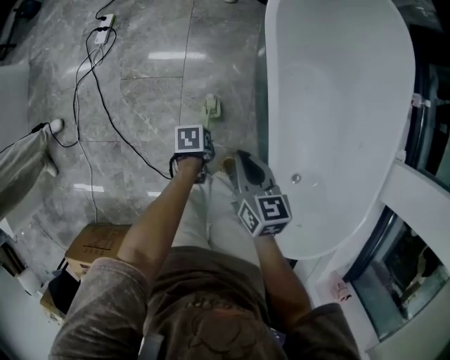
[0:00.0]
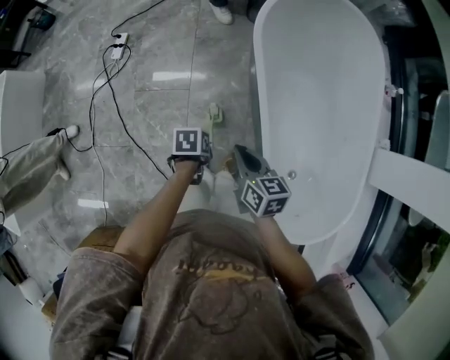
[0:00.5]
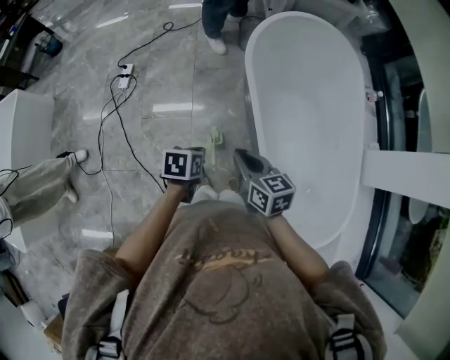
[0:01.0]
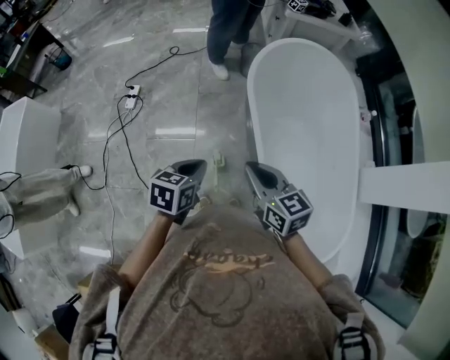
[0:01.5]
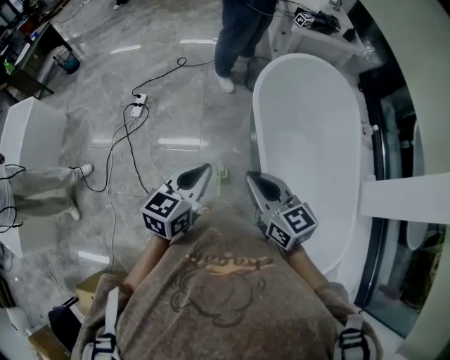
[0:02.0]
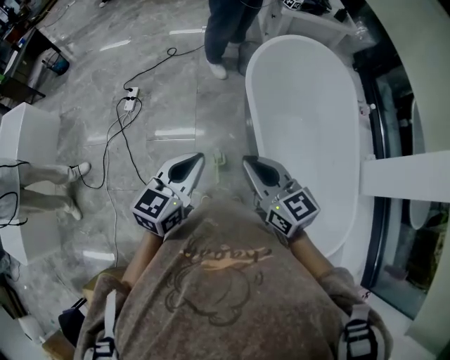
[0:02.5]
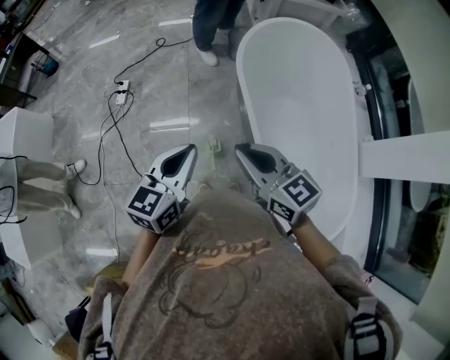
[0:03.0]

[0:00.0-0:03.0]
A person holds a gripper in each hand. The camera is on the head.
0:00.0 to 0:01.5: Both grippers travel together upward, about 35 cm. The right gripper rotates about 20 degrees, while the left gripper rotates approximately 50 degrees.
0:01.5 to 0:03.0: The left gripper is displaced upward by some 10 cm, and rotates approximately 30 degrees, while the right gripper shifts some 5 cm upward.

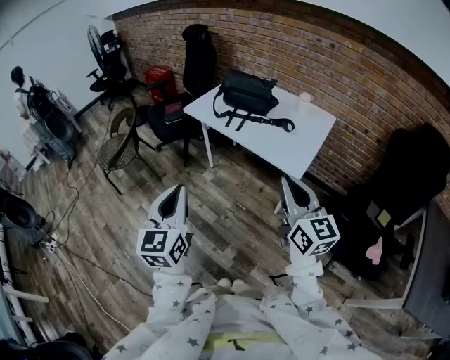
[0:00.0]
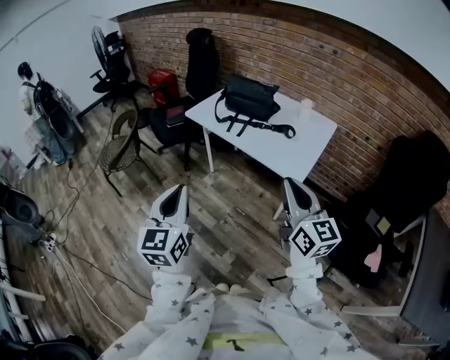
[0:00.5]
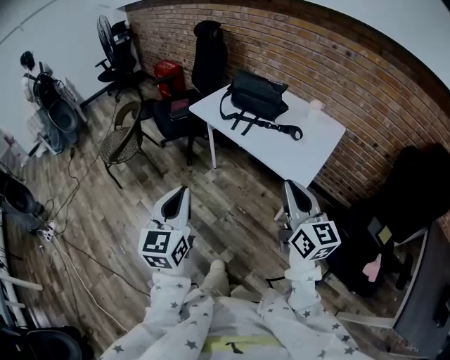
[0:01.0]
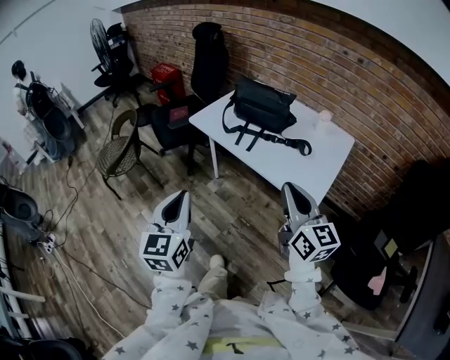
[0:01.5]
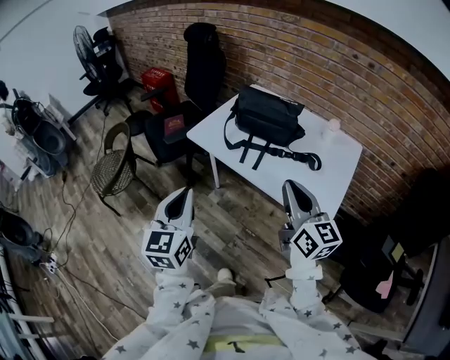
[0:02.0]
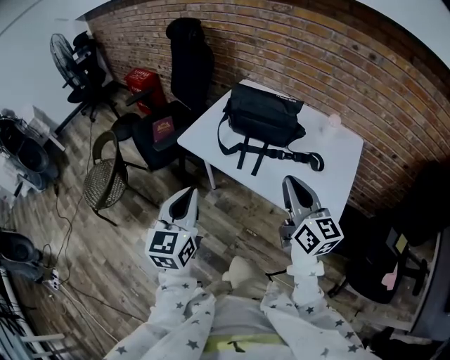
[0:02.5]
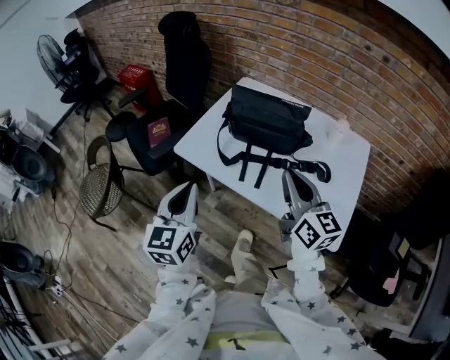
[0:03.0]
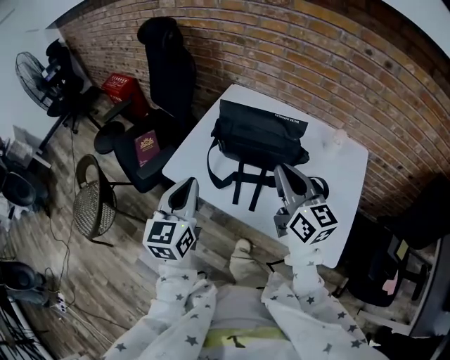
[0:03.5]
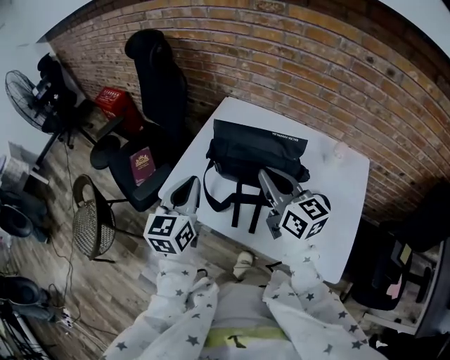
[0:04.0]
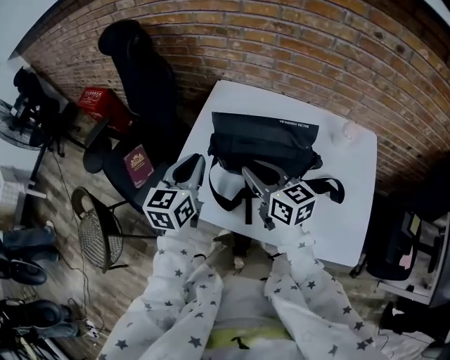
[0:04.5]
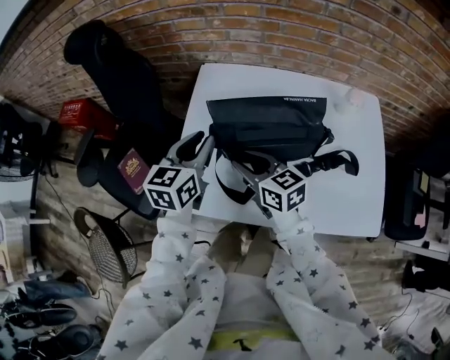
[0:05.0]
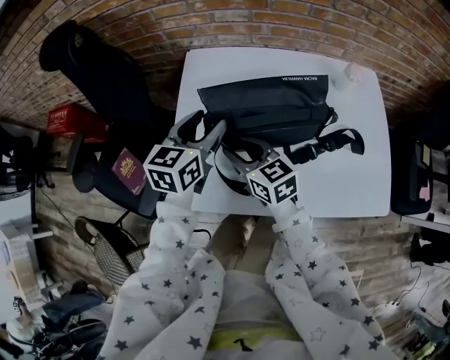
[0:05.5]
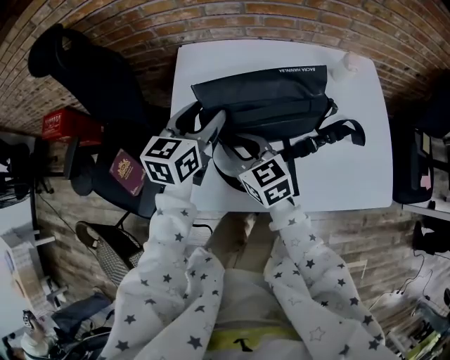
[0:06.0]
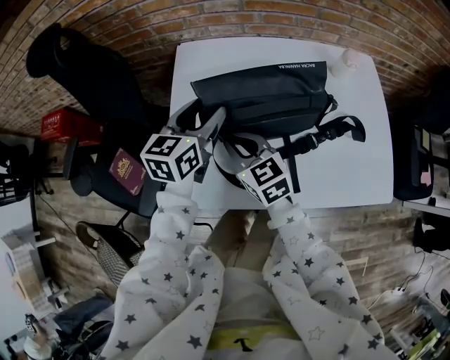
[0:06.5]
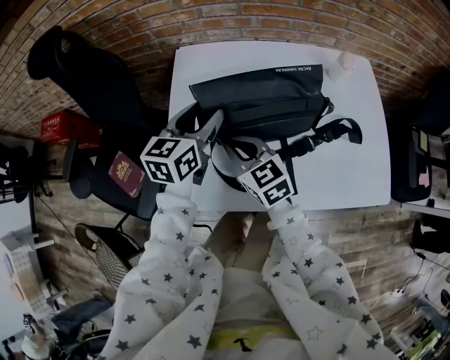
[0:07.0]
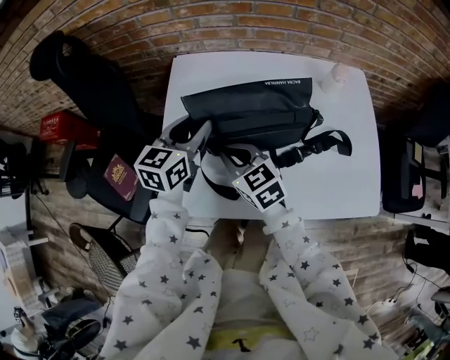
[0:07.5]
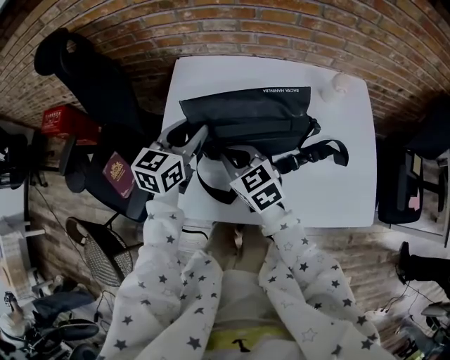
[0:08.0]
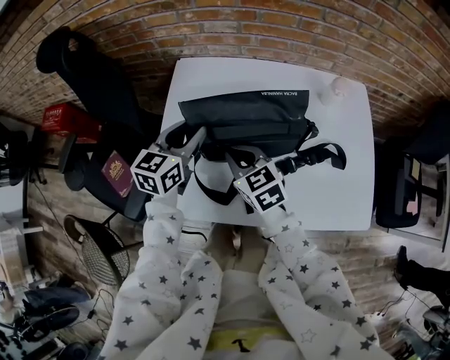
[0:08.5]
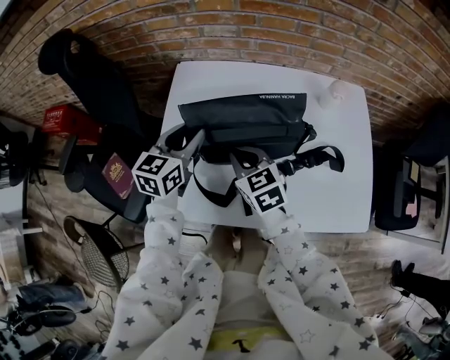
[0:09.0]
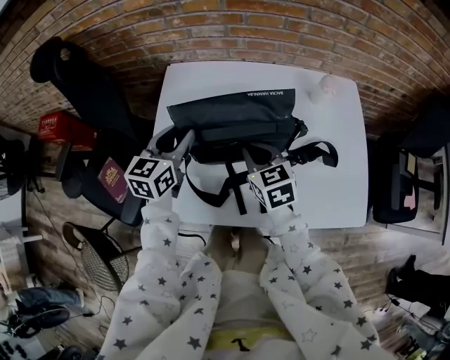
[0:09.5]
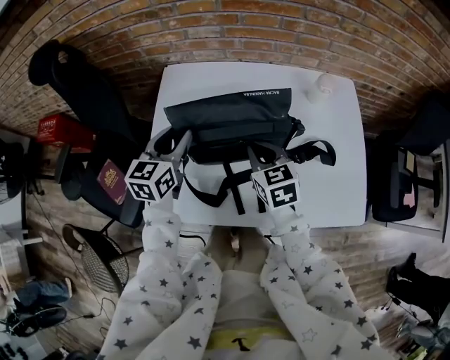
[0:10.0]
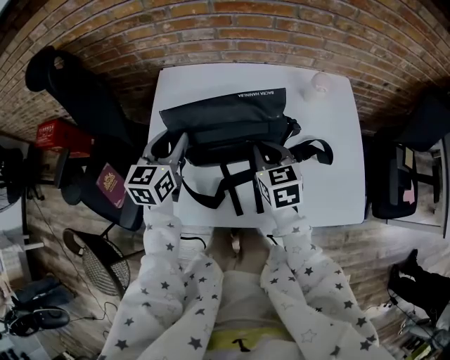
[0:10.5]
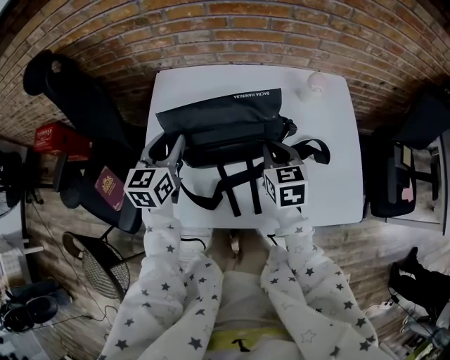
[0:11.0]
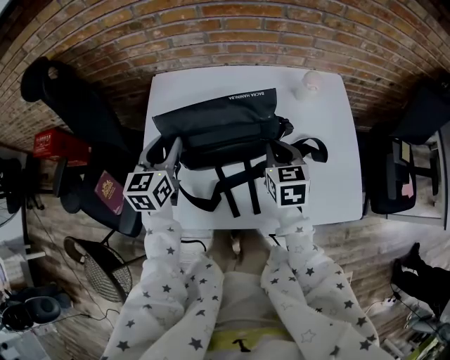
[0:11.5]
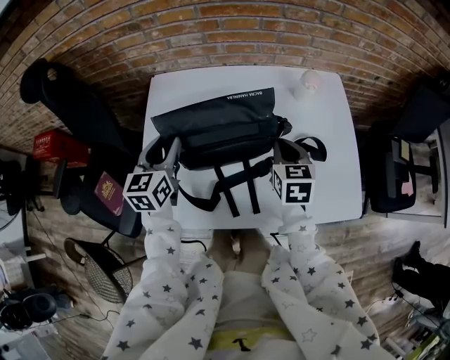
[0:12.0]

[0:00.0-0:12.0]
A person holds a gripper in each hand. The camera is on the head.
0:00.0 to 0:02.0: Both grippers move forward, about 25 cm.
0:02.0 to 0:04.0: The two grippers go approximately 35 cm forward.
0:04.0 to 0:06.0: The right gripper goes about 15 cm downward, turns by roughly 30 degrees, and opens its fingers. Meanwhile the left gripper changes place by roughly 20 cm, changes its angle by roughly 40 degrees, and opens up.
0:06.0 to 0:08.0: The left gripper closes its fingers.
0:08.0 to 0:10.0: The right gripper goes roughly 10 cm to the right.
0:10.0 to 0:12.0: The right gripper goes approximately 10 cm to the right, and changes its angle by approximately 20 degrees.

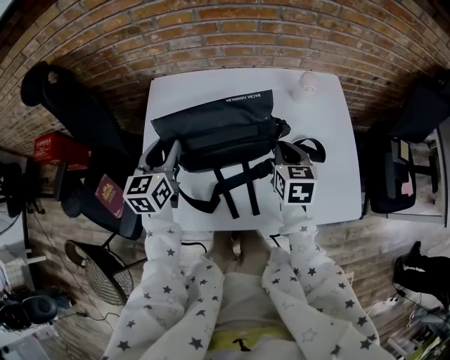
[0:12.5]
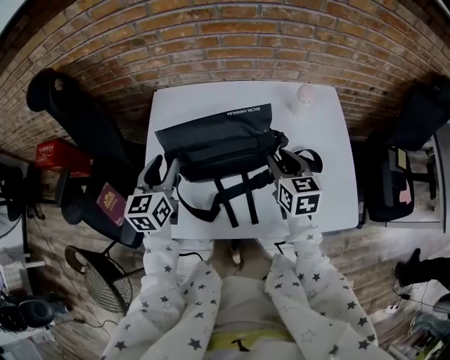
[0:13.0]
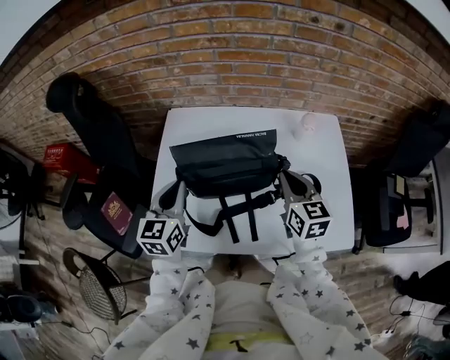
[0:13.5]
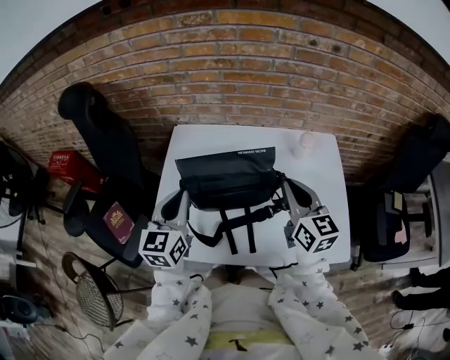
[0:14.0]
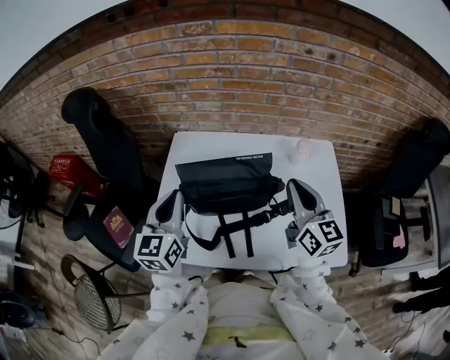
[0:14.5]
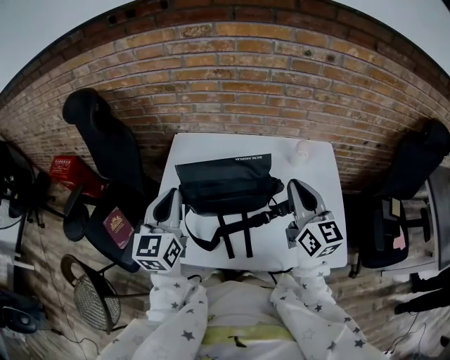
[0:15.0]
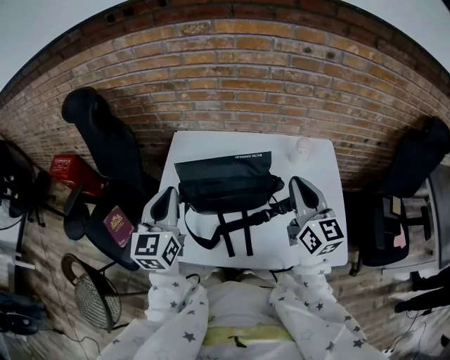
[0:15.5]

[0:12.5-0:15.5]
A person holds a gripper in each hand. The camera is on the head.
0:12.5 to 0:14.0: The left gripper is displaced upward and backward by roughly 10 cm, and closes its fingers, while the right gripper heads upward, covering some 15 cm, rotates approximately 30 degrees, and opens, then closes again.
0:14.0 to 0:15.5: The grippers stay close to where they were, moving slightly.

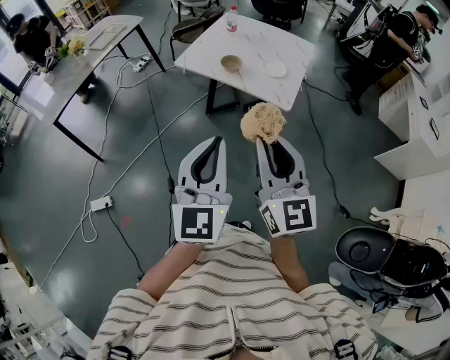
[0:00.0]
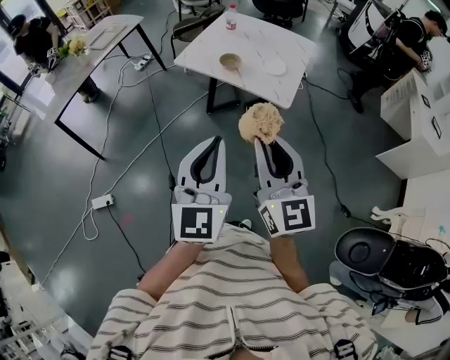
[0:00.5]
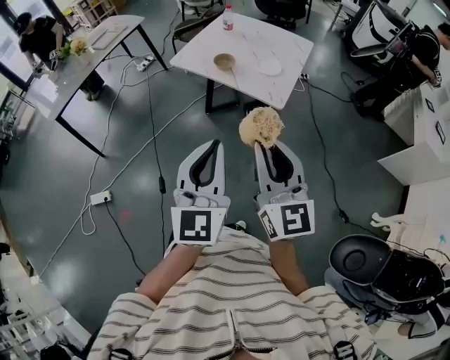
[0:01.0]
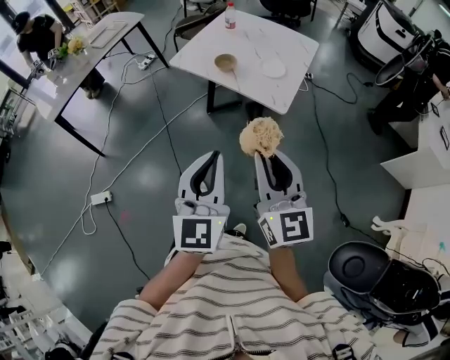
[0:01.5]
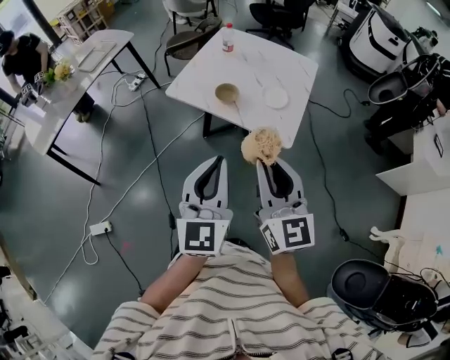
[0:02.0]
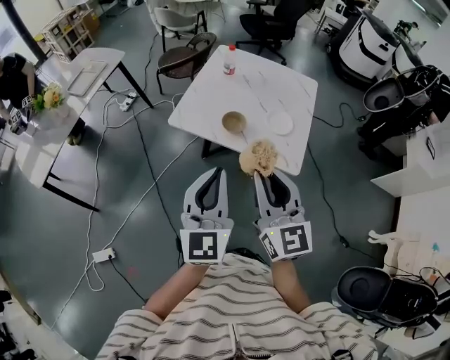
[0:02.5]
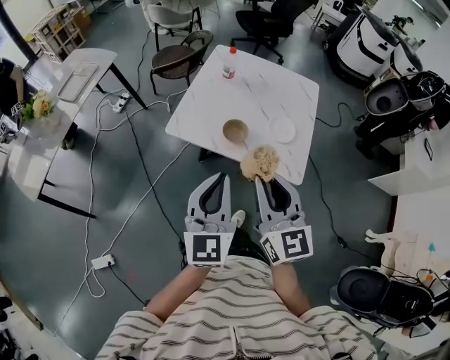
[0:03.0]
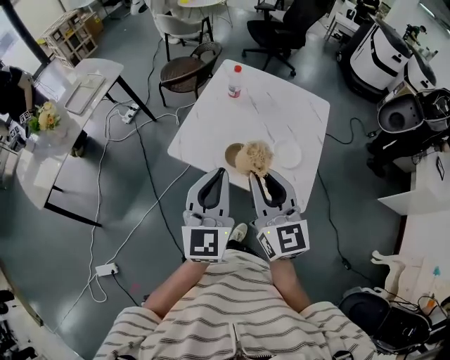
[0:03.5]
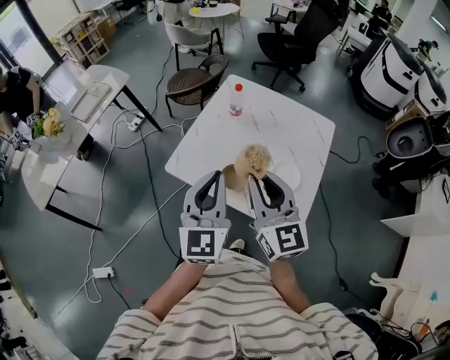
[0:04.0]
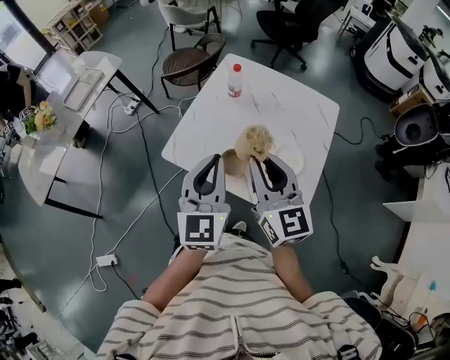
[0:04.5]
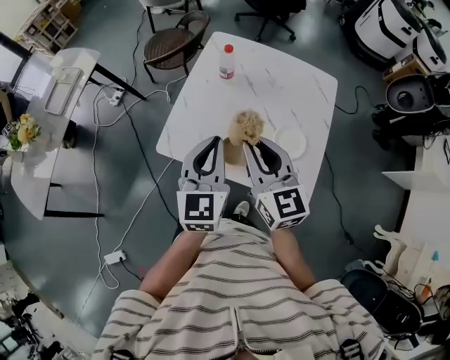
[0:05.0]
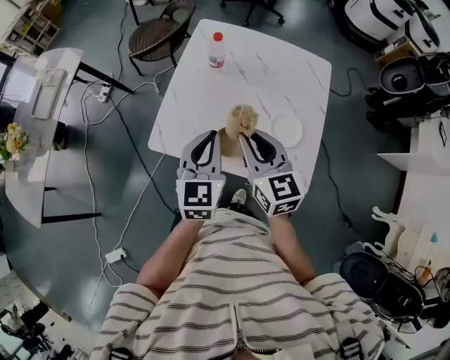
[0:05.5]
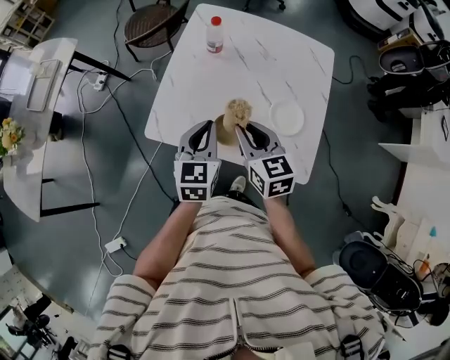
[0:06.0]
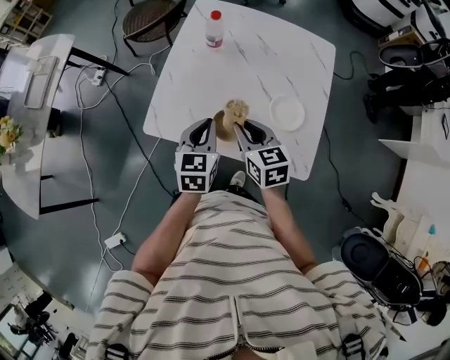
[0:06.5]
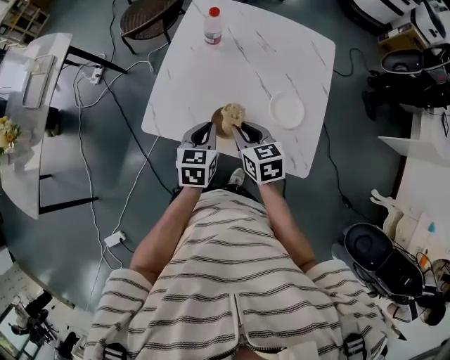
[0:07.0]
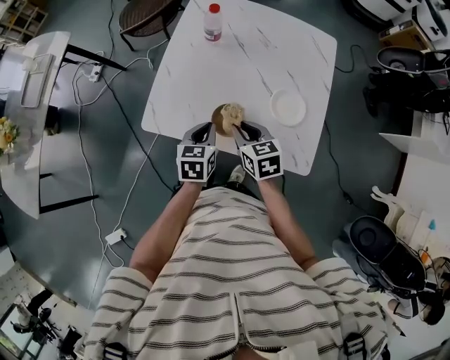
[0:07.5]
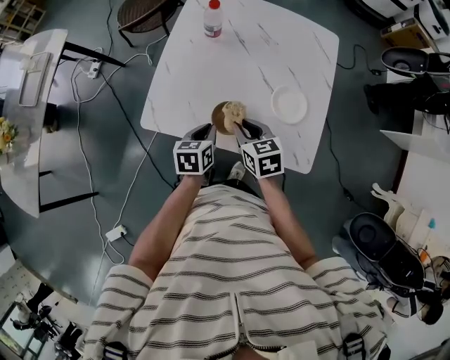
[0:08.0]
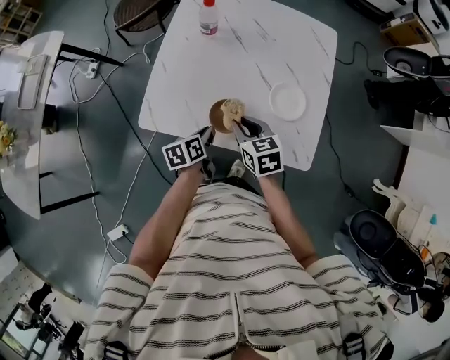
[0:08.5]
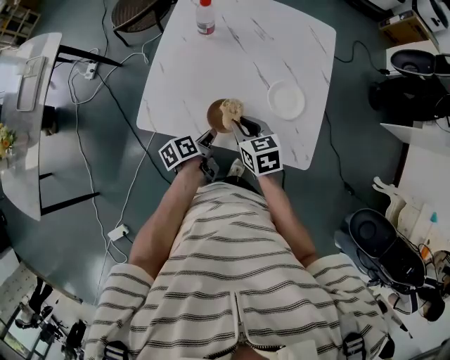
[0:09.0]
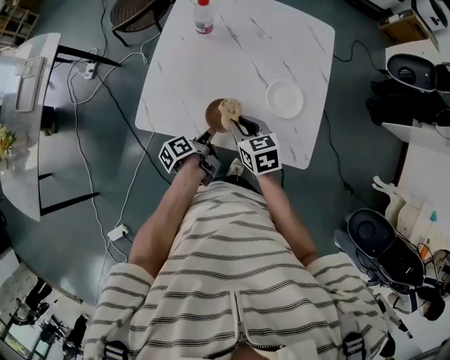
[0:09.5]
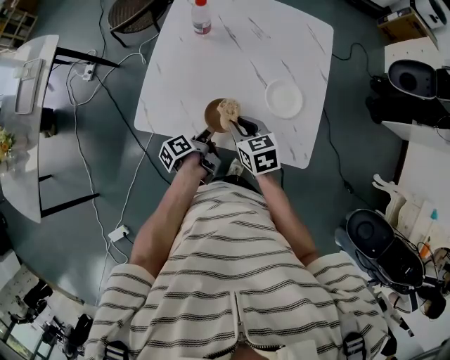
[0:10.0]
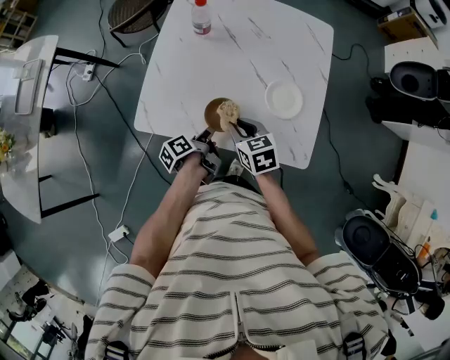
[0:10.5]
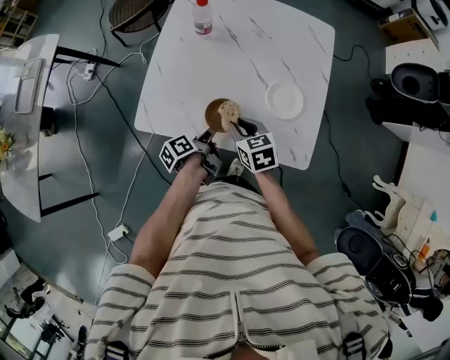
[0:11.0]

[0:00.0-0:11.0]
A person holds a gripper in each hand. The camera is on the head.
0:00.0 to 0:02.0: Both grippers move forward, about 20 cm.
0:02.0 to 0:03.5: The grippers both shift forward by some 30 cm.
0:03.5 to 0:05.5: Both grippers move forward and downward, about 20 cm.
0:05.5 to 0:07.5: Both grippers travel together downward, approximately 15 cm. The right gripper rotates roughly 30 degrees, while the left gripper turns by about 30 degrees.
0:07.5 to 0:09.0: The left gripper moves downward, some 10 cm, and rotates around the line of its fingers by some 50 degrees, counterclockwise from behind.
0:09.0 to 0:11.0: There are only small adjustments of the grippers.
